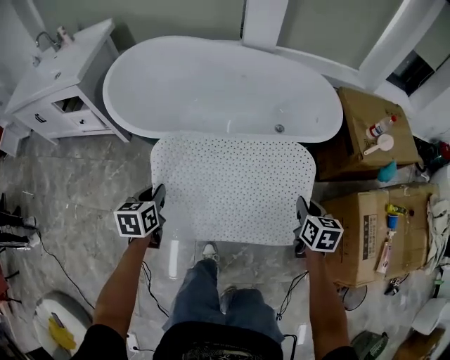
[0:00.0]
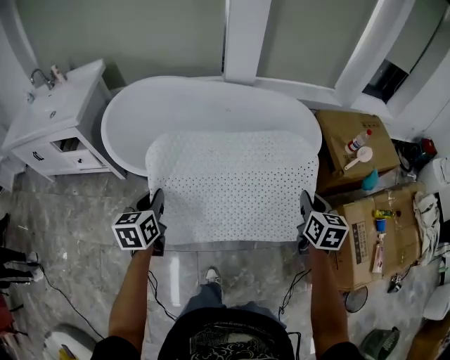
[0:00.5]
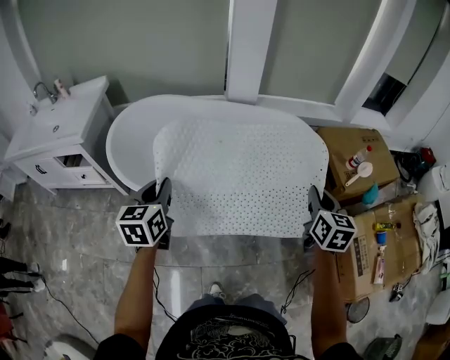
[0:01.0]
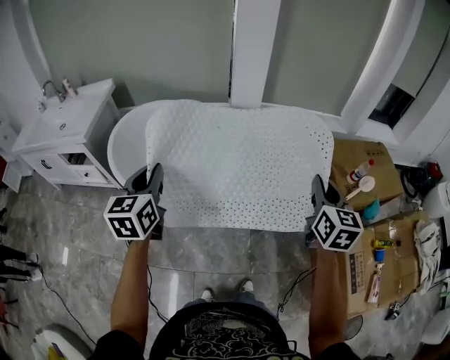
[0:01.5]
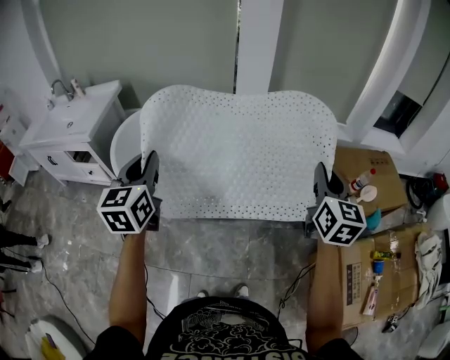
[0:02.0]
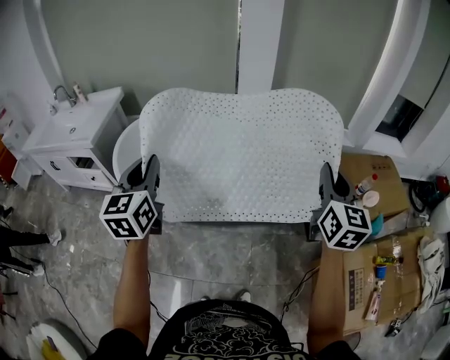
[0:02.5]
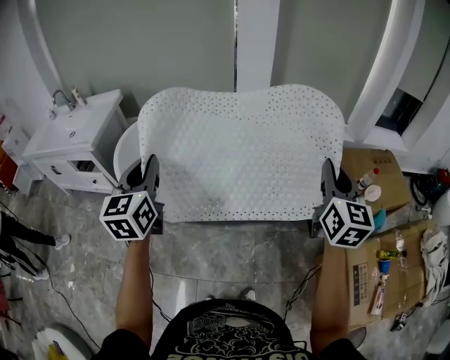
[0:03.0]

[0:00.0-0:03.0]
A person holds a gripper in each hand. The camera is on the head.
0.0 to 1.5 s: Both grippers move upward and forward, some 35 cm. The left gripper rotates about 30 degrees. The right gripper turns by about 30 degrees.
1.5 to 3.0 s: The two grippers go some 5 cm upward.

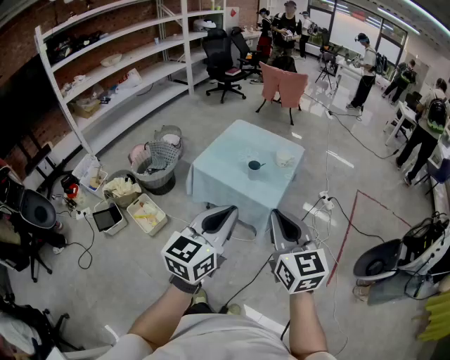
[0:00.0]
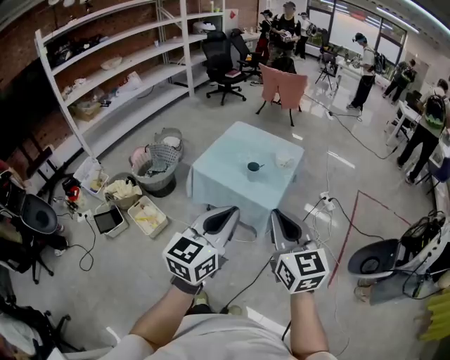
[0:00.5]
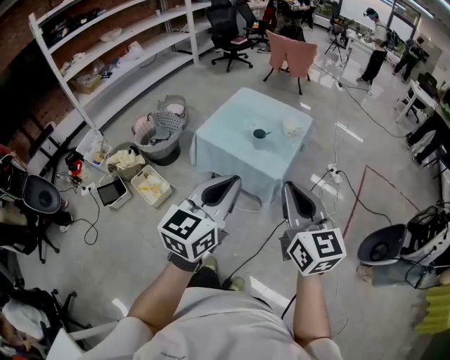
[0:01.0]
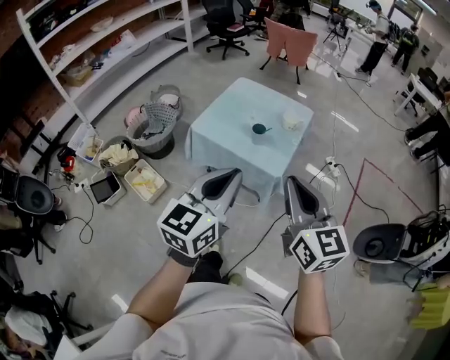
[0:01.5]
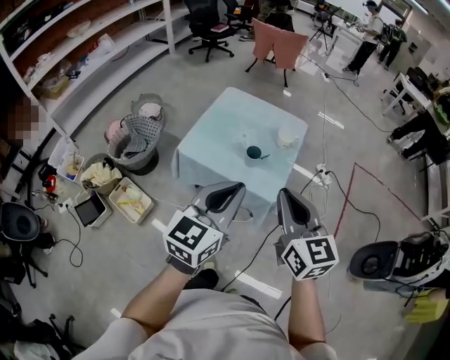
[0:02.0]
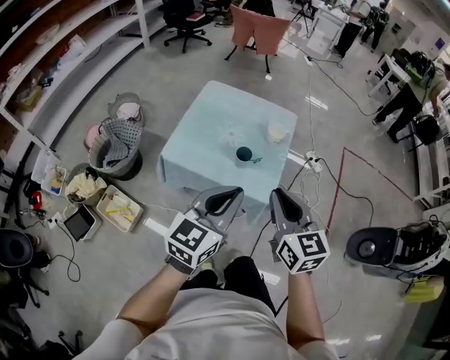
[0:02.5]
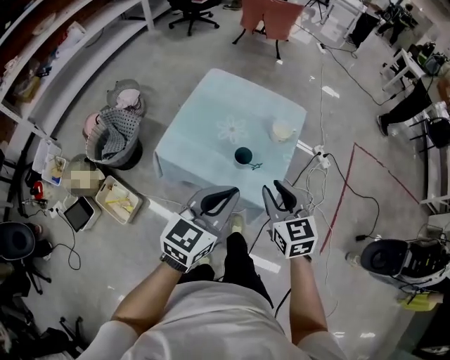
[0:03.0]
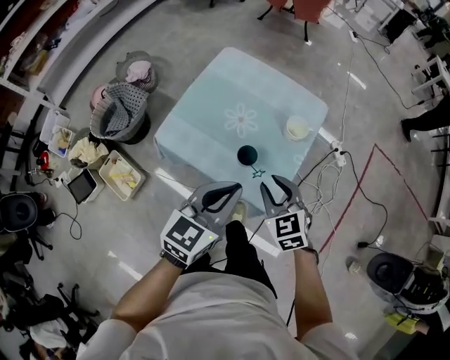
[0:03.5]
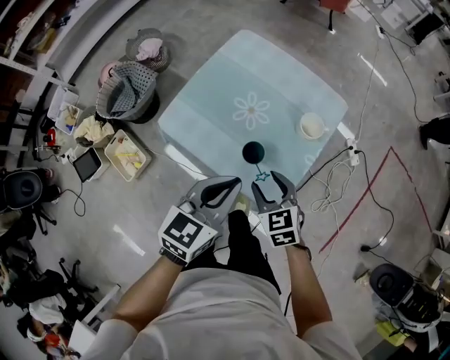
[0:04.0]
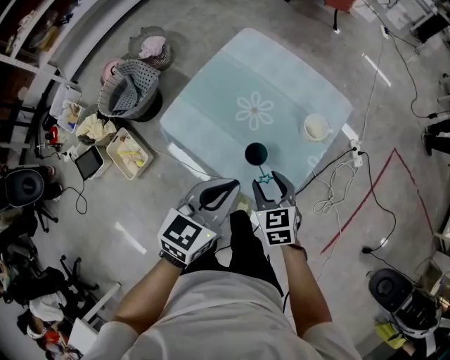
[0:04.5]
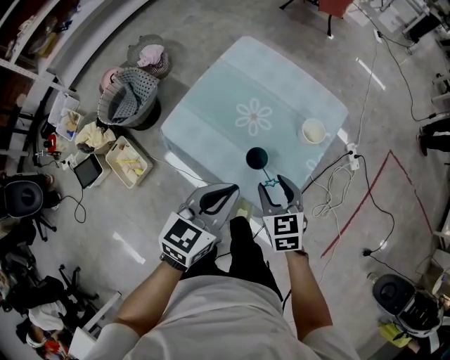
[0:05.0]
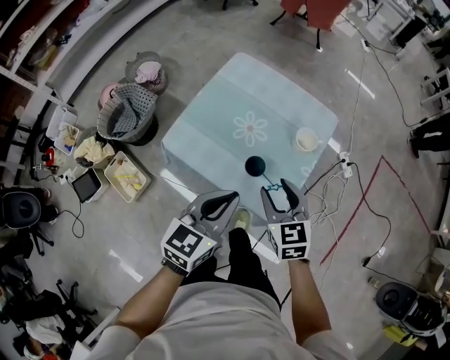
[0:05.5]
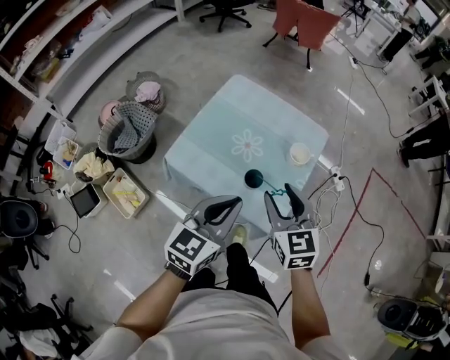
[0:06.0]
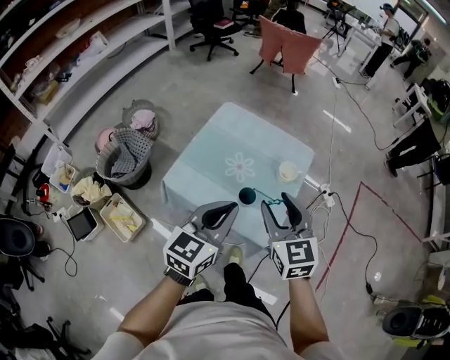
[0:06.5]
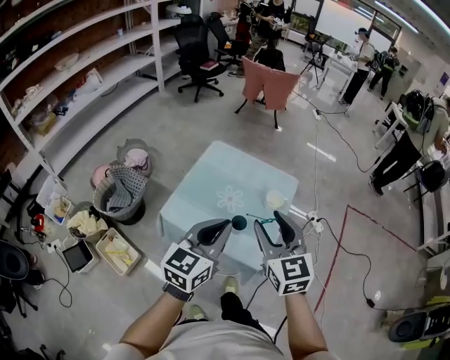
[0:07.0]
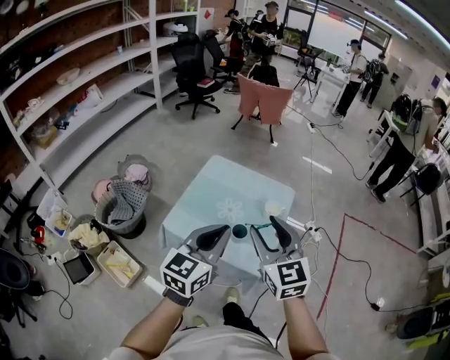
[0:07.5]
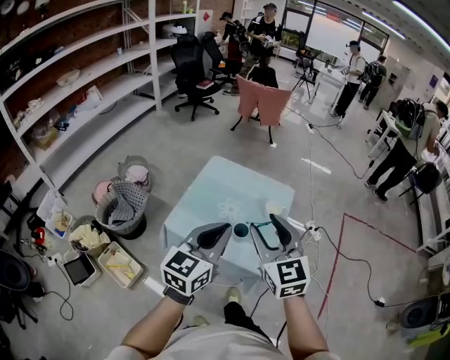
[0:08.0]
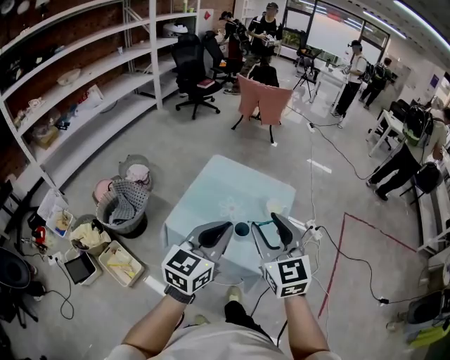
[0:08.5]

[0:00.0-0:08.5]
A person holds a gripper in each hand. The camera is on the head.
0.0 to 2.0 s: Both grippers move forward, approximately 20 cm.
2.0 to 4.0 s: The right gripper goes roughly 40 cm downward and forward, tilts its fingers about 30 degrees downward, and opens up. Meanwhile the left gripper moves forward and downward, some 30 cm, and rotates about 20 degrees.
4.0 to 6.5 s: The left gripper moves upward, about 10 cm. Meanwhile the right gripper shifts about 25 cm upward, and turns by about 30 degrees.
6.5 to 8.5 s: The left gripper travels upward by some 10 cm, while the right gripper heads upward and backward, covering some 15 cm.

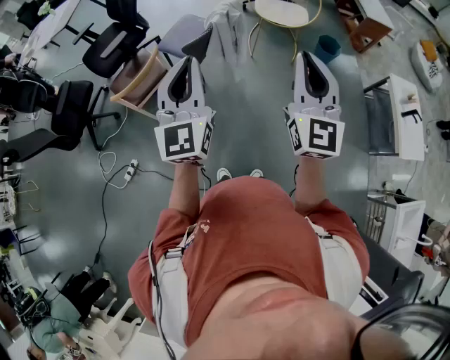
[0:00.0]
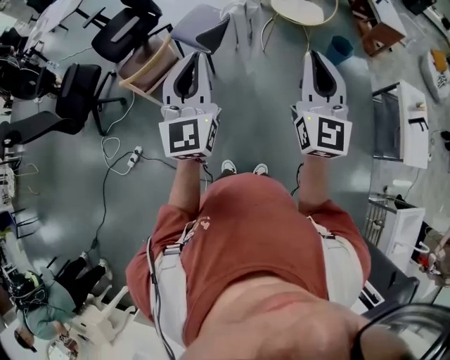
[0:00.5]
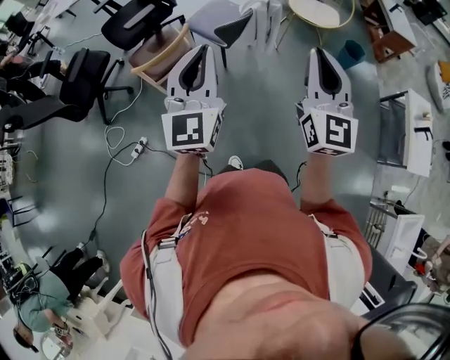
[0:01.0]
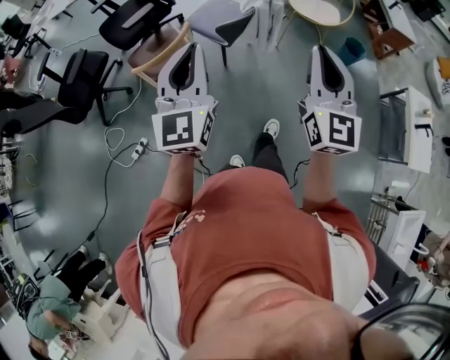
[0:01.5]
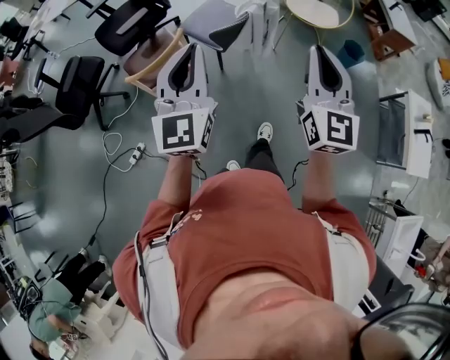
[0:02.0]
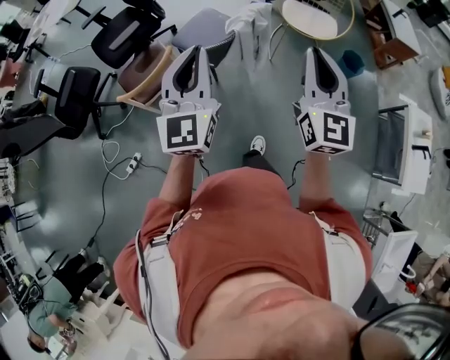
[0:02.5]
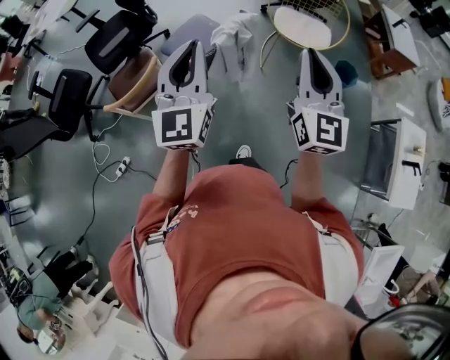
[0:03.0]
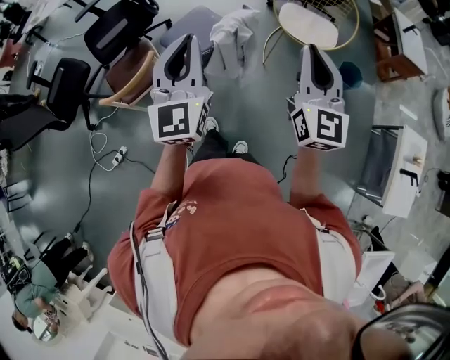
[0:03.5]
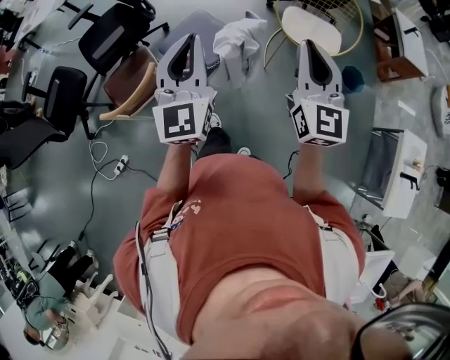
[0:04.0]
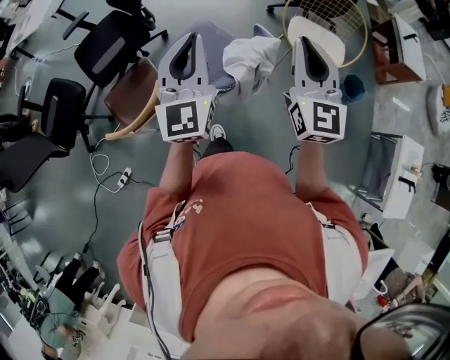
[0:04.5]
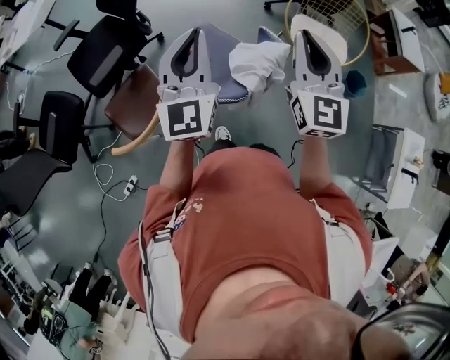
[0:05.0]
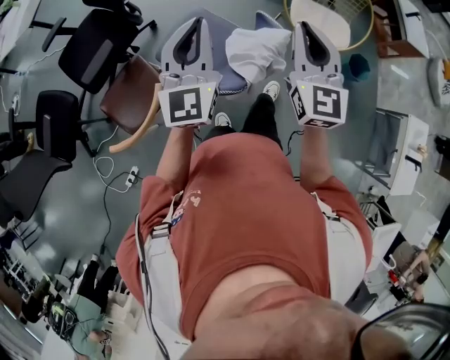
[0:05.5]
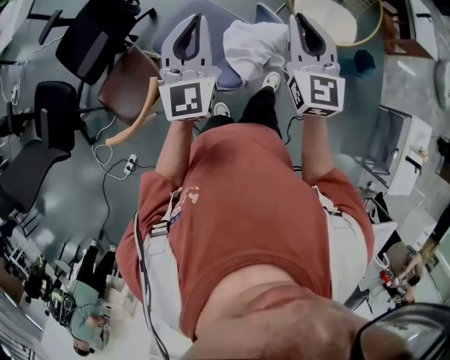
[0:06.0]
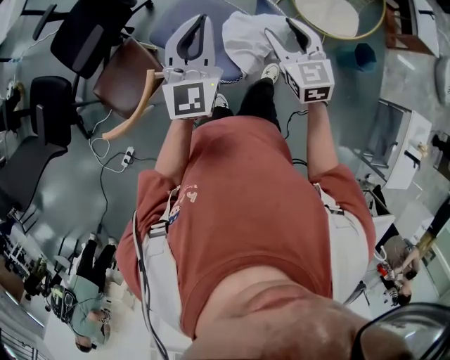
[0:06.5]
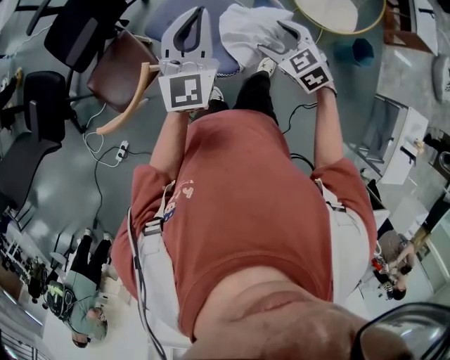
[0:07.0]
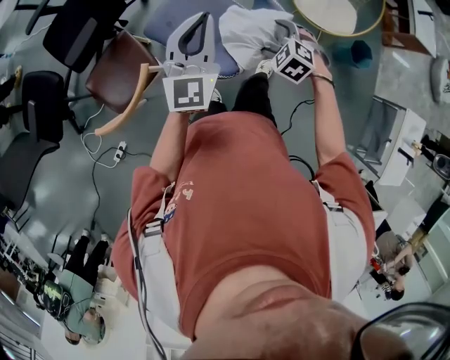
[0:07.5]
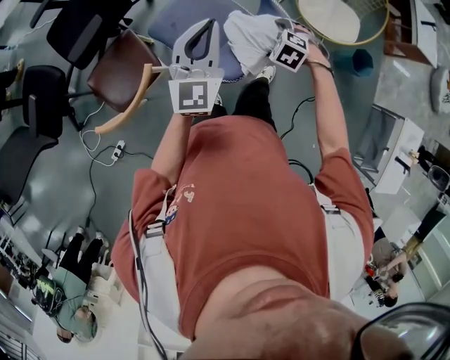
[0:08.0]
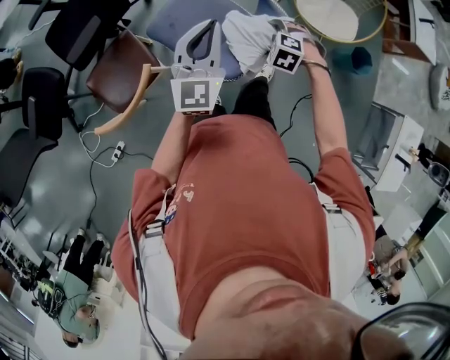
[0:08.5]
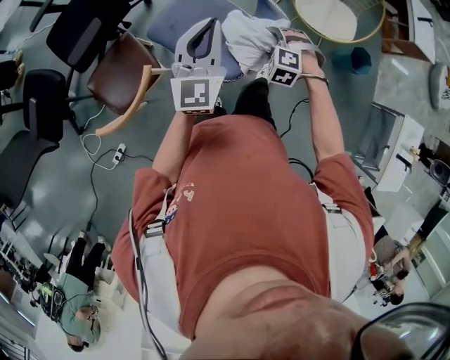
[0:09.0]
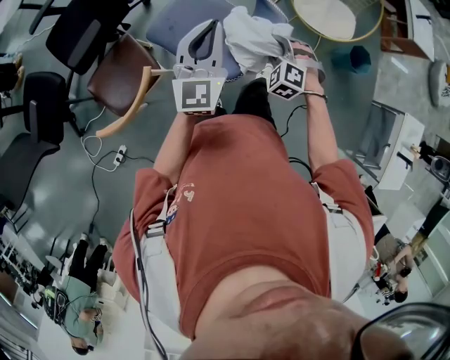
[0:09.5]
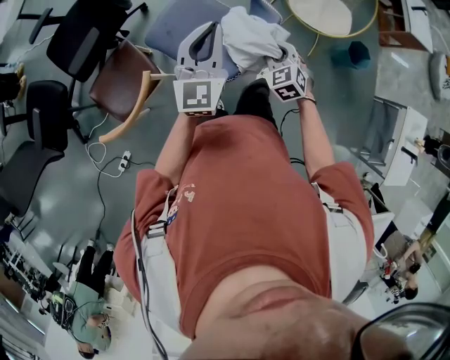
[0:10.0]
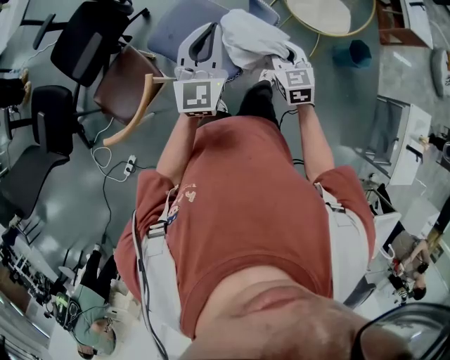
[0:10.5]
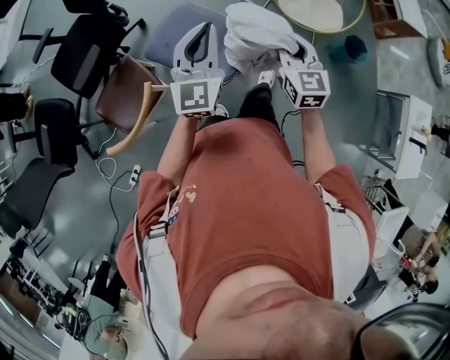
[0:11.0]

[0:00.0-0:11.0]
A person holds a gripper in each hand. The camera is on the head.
0.0 to 2.0 s: The left gripper is displaced to the left by some 10 cm. Meanwhile the right gripper travels to the left and forward by about 10 cm.
2.0 to 3.5 s: Both grippers move forward and to the right, approximately 30 cm.
3.5 to 5.5 s: Both grippers move forward and to the left, some 30 cm.
5.5 to 7.5 s: The right gripper shifts some 30 cm downward, angles its fingers downward, by some 60 degrees, and opens, while the left gripper goes about 10 cm downward.
7.5 to 9.0 s: The right gripper changes its angle by approximately 20 degrees.
9.0 to 11.0 s: The left gripper ends up approximately 5 cm from where it was. Meanwhile the right gripper shifts some 20 cm upward, tilts its fingers approximately 50 degrees upward, and closes.

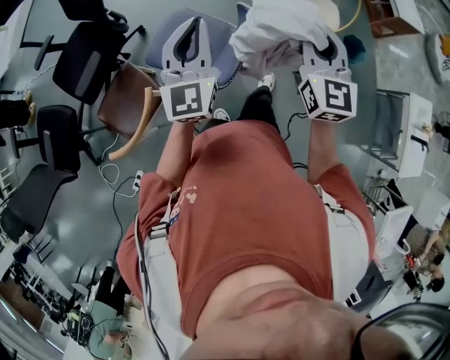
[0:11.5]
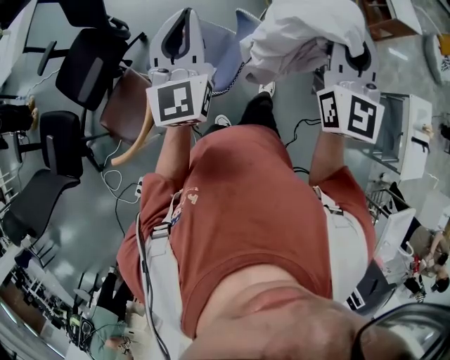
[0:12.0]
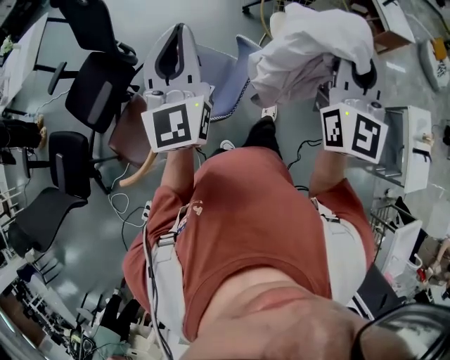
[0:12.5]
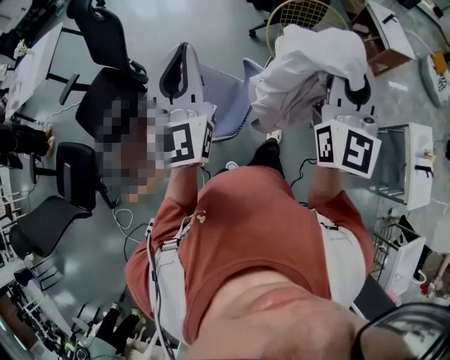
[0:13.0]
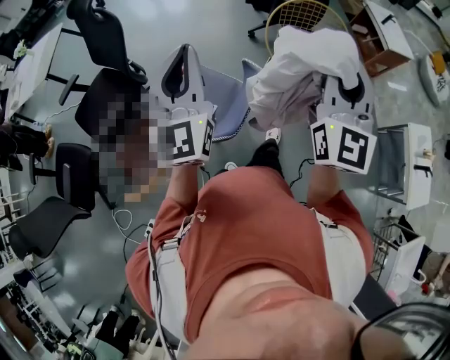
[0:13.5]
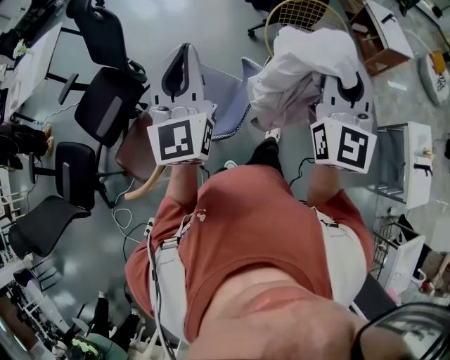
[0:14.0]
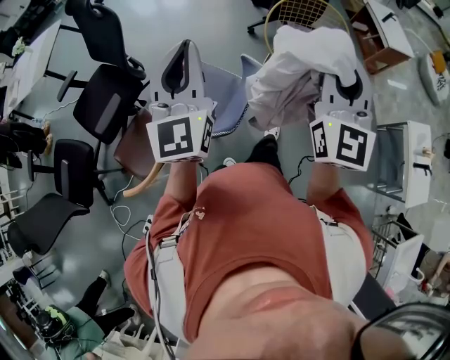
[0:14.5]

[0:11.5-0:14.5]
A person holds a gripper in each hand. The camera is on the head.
11.5 to 13.0 s: The grippers both shift upward by some 15 cm. The right gripper rotates about 20 degrees.
13.0 to 14.5 s: The grippers move only a little.

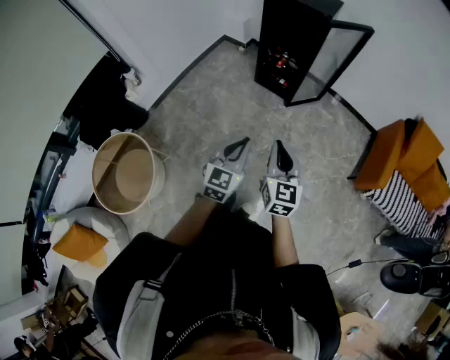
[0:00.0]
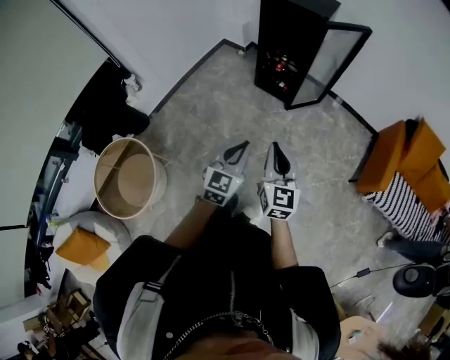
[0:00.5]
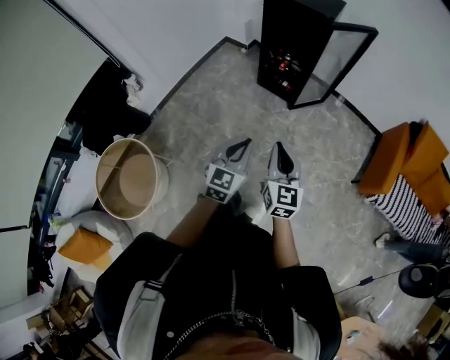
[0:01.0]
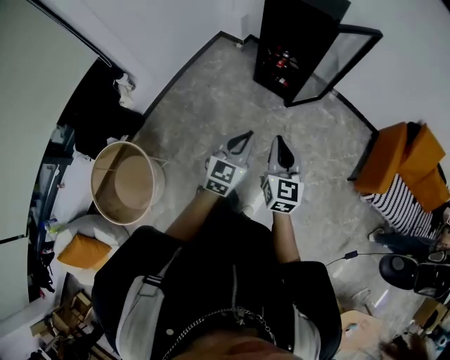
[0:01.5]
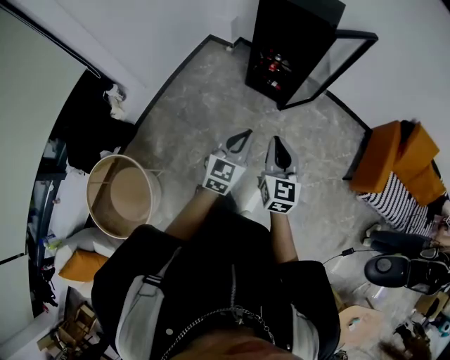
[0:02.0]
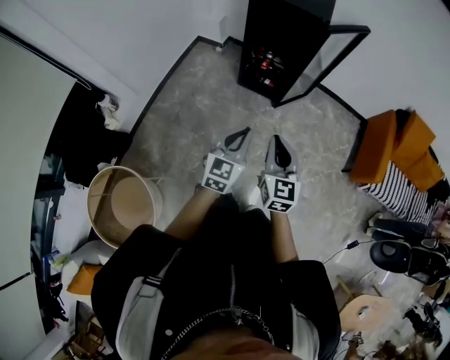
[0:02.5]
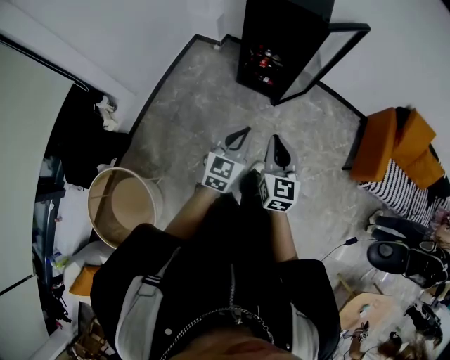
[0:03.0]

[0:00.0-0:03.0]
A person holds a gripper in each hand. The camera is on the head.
0.0 to 1.5 s: The two grippers go some 10 cm forward.
1.5 to 3.0 s: The two grippers go roughly 10 cm forward.
